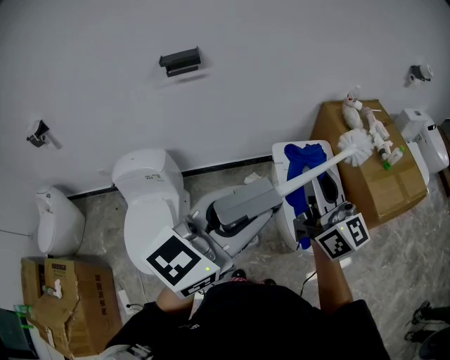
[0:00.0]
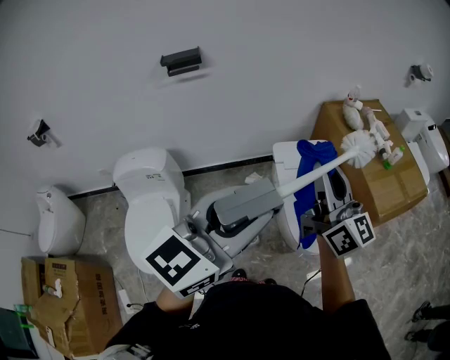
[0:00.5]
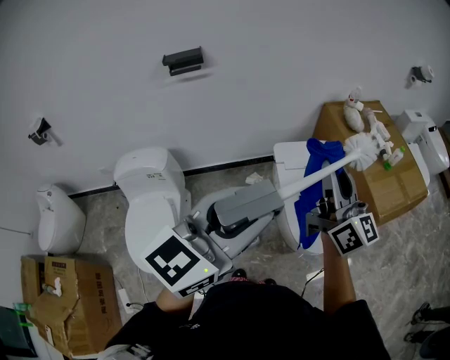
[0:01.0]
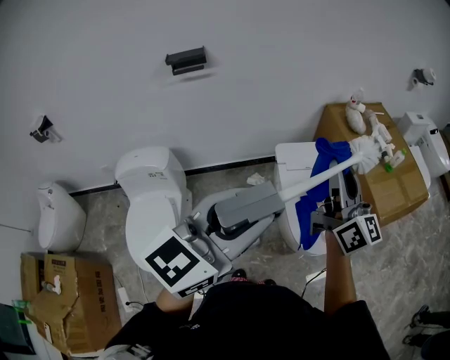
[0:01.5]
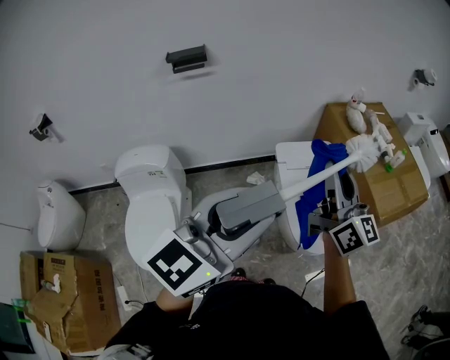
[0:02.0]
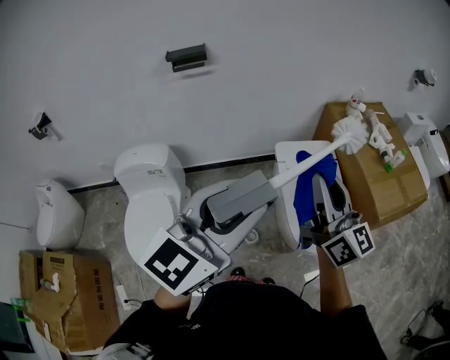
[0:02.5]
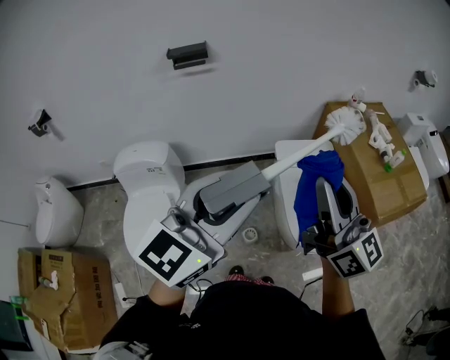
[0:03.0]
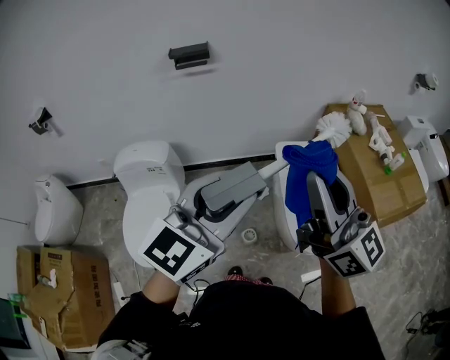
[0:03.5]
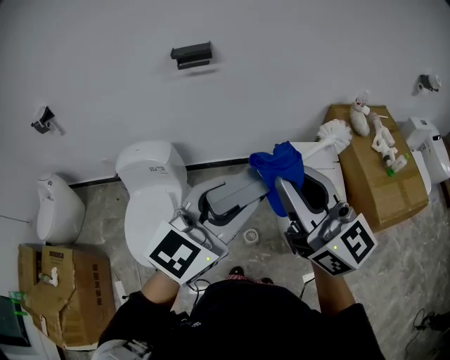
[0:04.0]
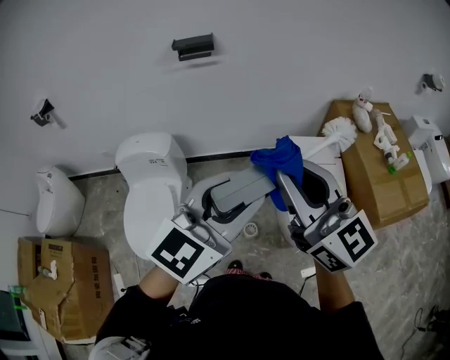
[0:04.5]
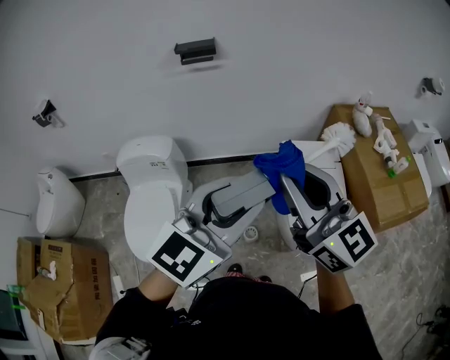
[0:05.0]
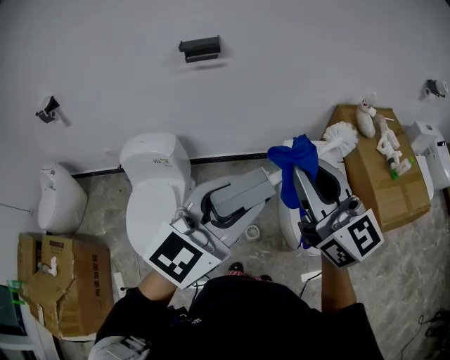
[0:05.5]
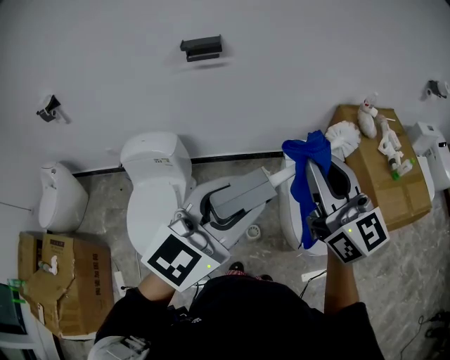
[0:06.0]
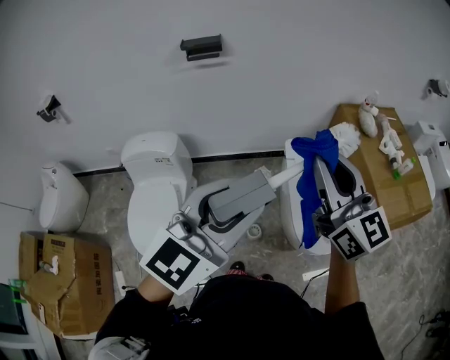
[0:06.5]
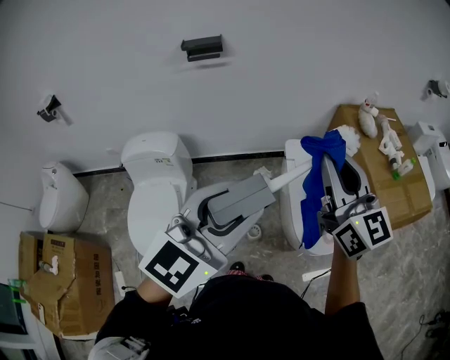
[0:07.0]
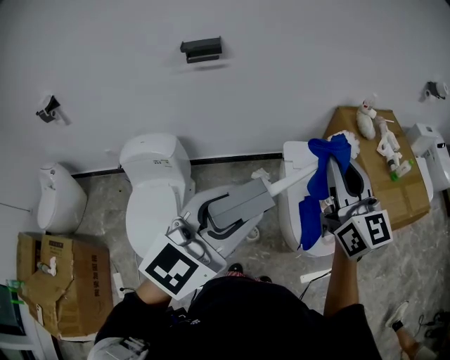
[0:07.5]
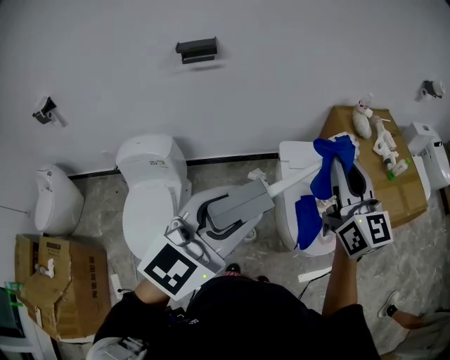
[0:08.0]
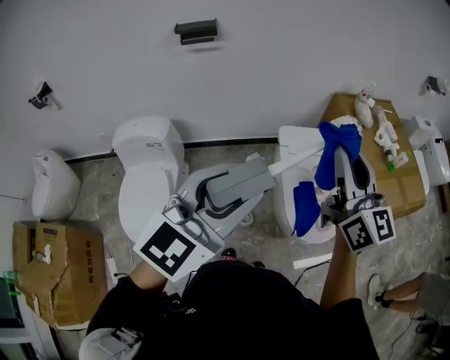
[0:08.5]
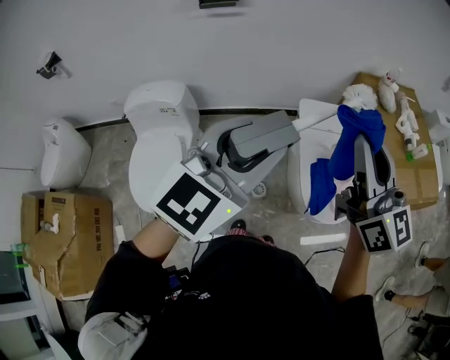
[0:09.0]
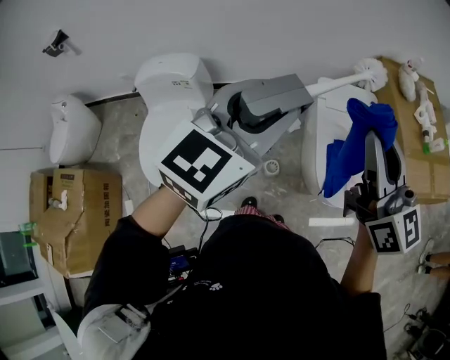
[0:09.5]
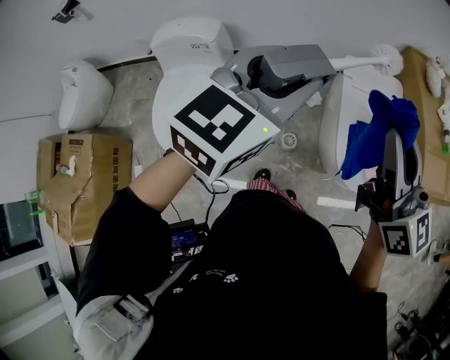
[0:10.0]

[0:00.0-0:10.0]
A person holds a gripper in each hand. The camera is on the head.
0:00.0 to 0:02.0: The grippers make only small movements.
0:02.0 to 0:04.0: The right gripper goes some 15 cm to the left, backward and upward, and swivels approximately 30 degrees.
0:04.0 to 0:06.0: The grippers stay close to where they were, moving slightly.
0:06.0 to 0:08.0: The right gripper moves to the right, roughly 10 cm.
0:08.0 to 0:10.0: The right gripper shifts roughly 5 cm to the left and backward, and turns by roughly 20 degrees; the left gripper travels forward and downward by roughly 10 cm.

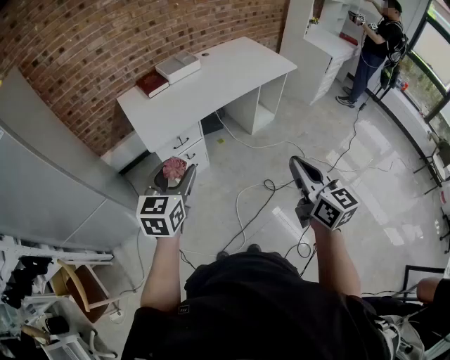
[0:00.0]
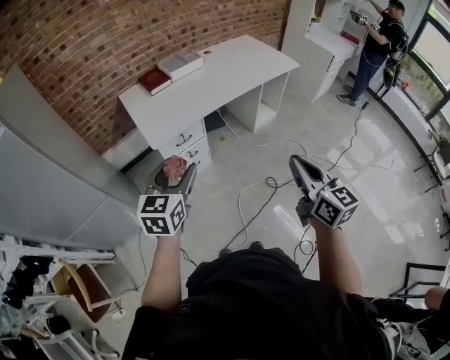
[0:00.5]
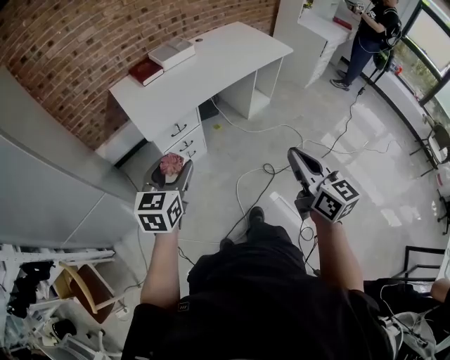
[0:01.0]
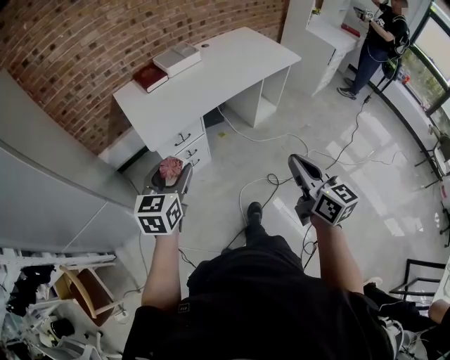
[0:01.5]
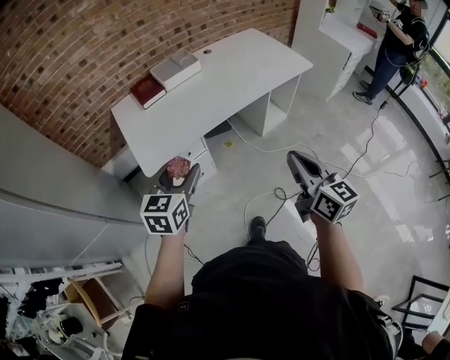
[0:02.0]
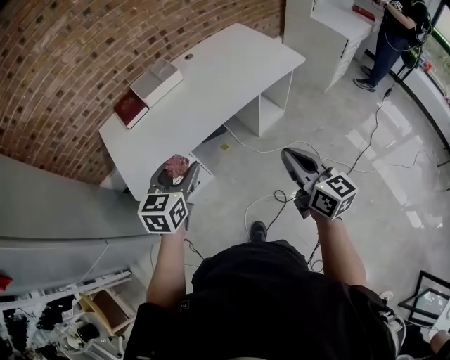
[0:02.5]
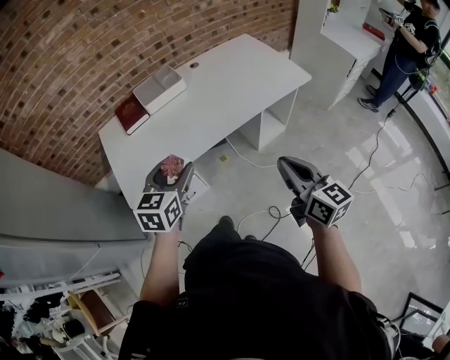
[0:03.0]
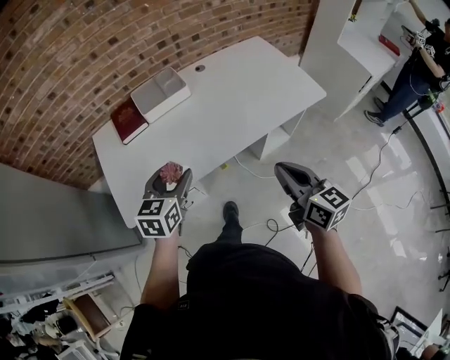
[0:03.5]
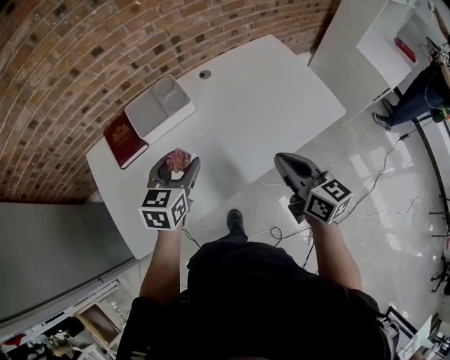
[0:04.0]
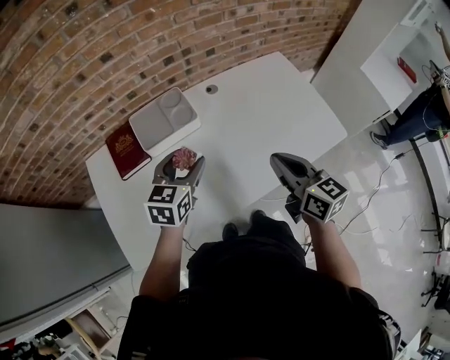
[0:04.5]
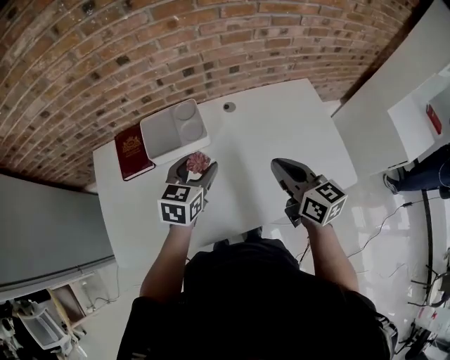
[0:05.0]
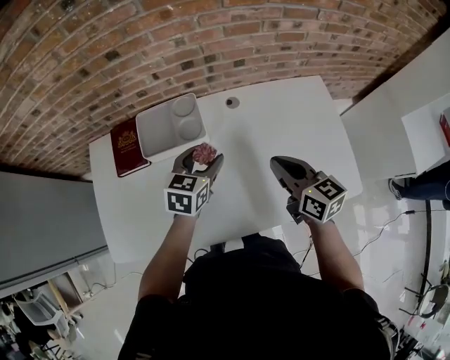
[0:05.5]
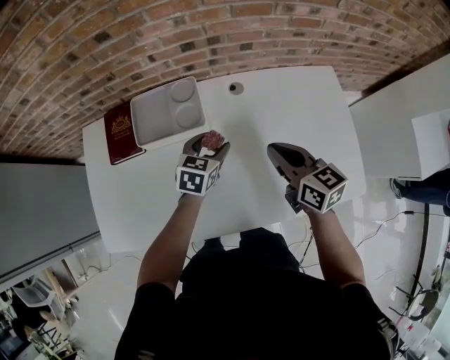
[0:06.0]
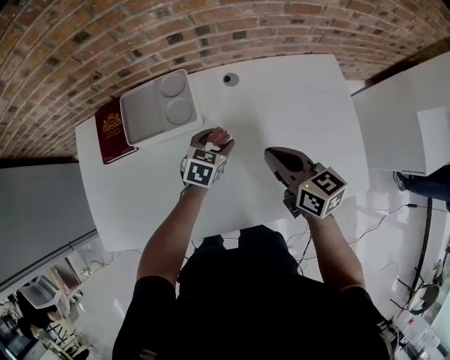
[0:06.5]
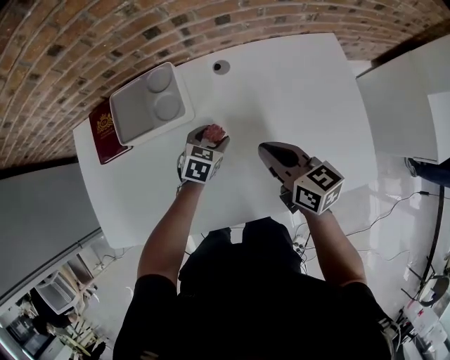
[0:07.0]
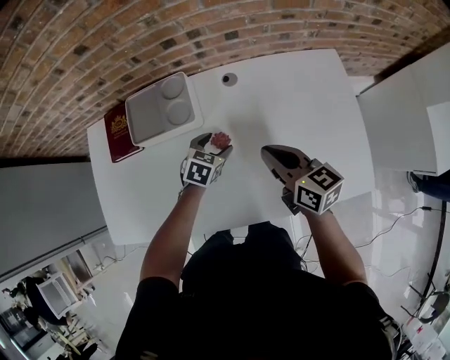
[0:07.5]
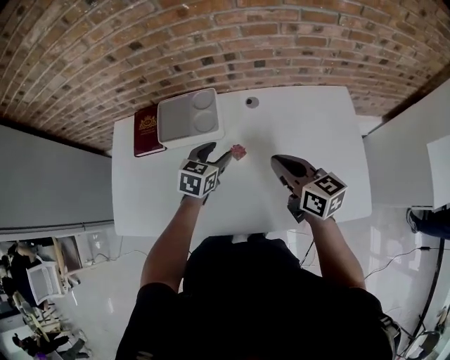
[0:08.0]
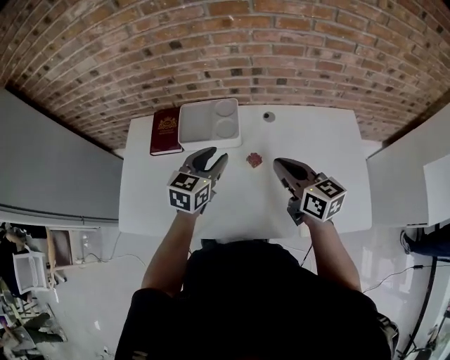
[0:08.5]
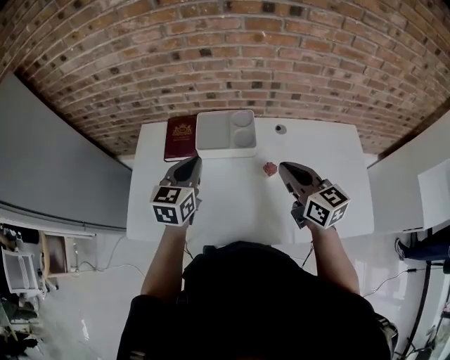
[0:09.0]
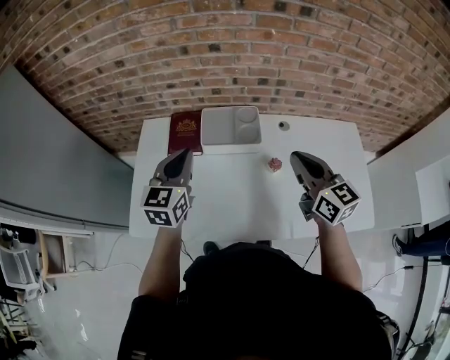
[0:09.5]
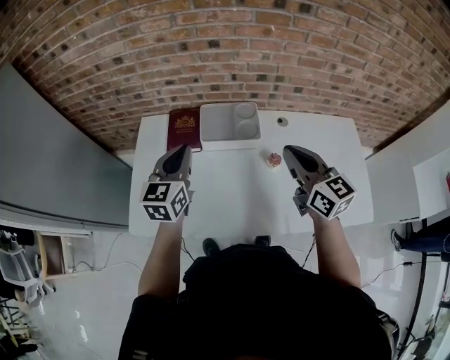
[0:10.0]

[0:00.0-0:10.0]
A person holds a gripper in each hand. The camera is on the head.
0:00.0 to 0:02.0: The grippers both shift forward by about 20 cm.
0:02.0 to 0:04.0: Both grippers are carried forward, about 50 cm.
0:04.0 to 0:06.0: The right gripper heads forward, covering roughly 25 cm, and turns by about 30 degrees. Meanwhile the left gripper is displaced forward, downward and to the right by some 25 cm.
0:06.0 to 0:08.0: The left gripper reaches some 10 cm downward, then returns, while the right gripper moves some 5 cm downward and comes back.
0:08.0 to 0:10.0: The right gripper travels to the left and upward by about 20 cm, and changes its angle by roughly 20 degrees, while the left gripper moves to the left and upward, roughly 35 cm, changes its angle by some 30 degrees, and closes up.

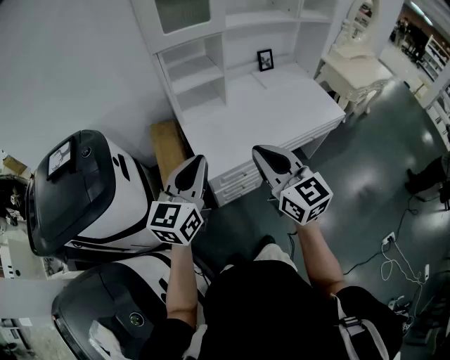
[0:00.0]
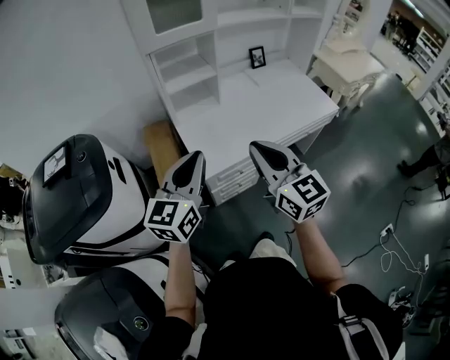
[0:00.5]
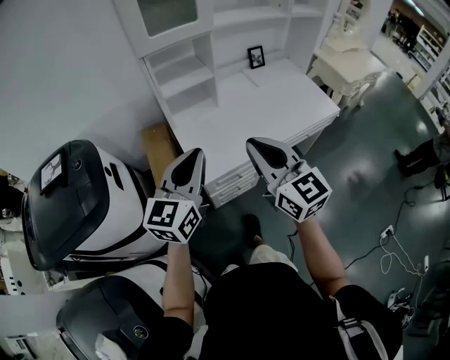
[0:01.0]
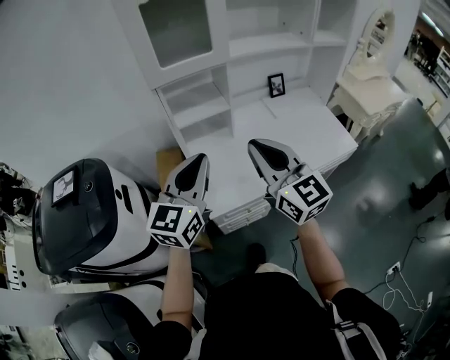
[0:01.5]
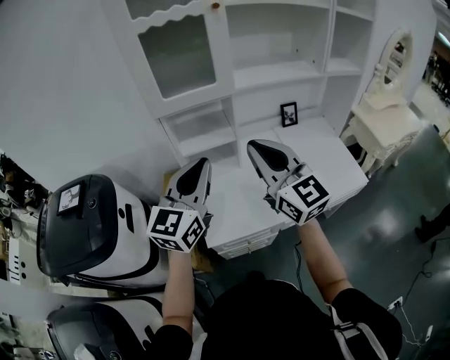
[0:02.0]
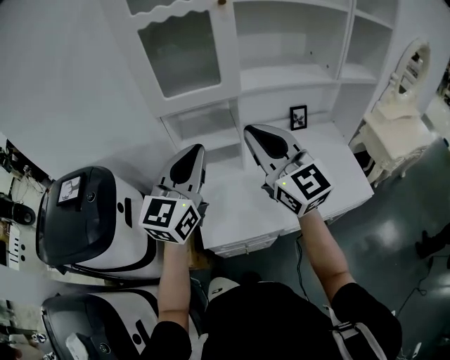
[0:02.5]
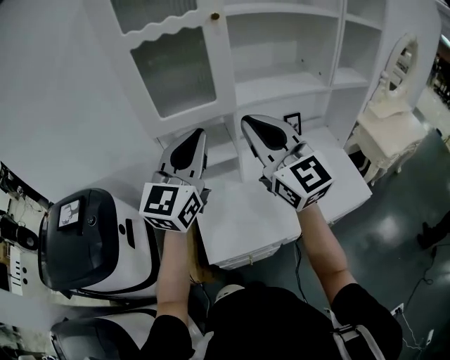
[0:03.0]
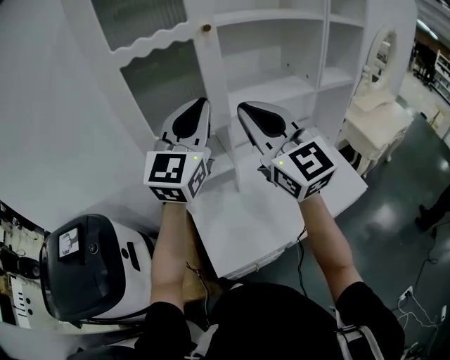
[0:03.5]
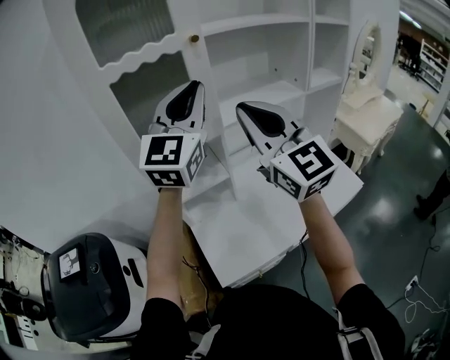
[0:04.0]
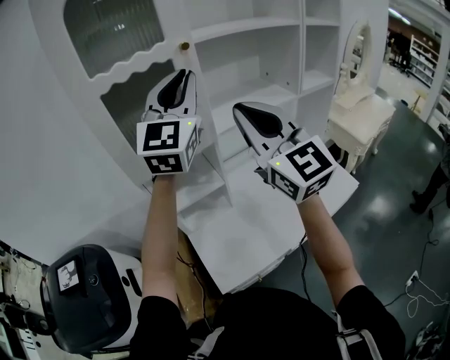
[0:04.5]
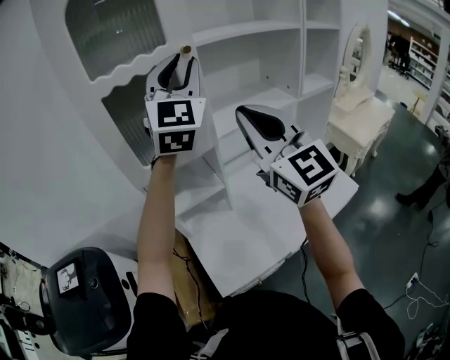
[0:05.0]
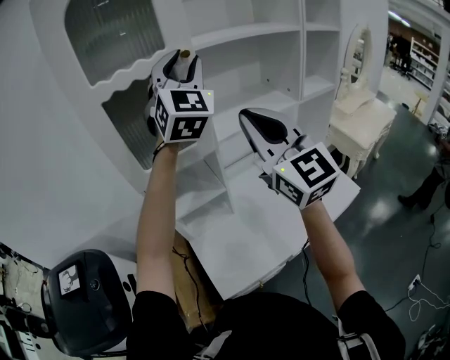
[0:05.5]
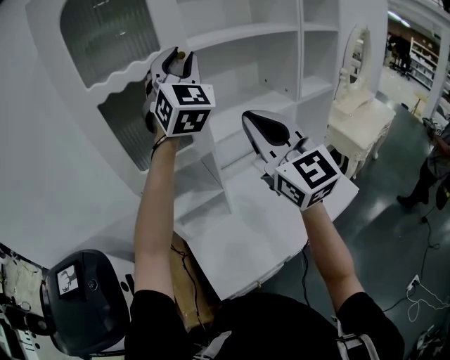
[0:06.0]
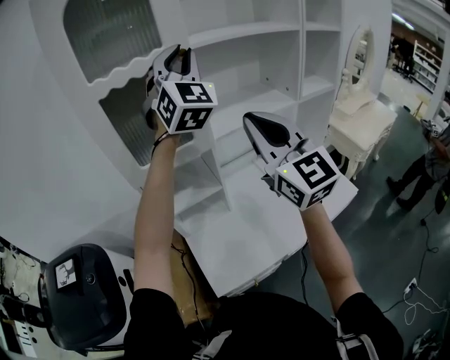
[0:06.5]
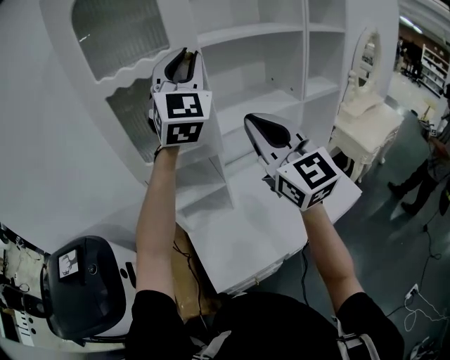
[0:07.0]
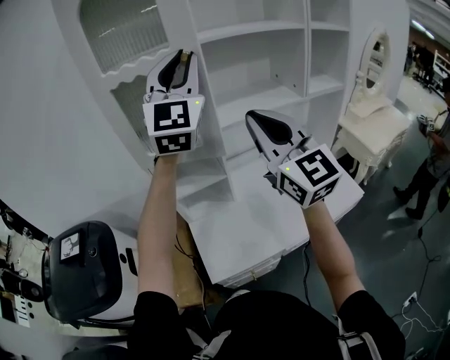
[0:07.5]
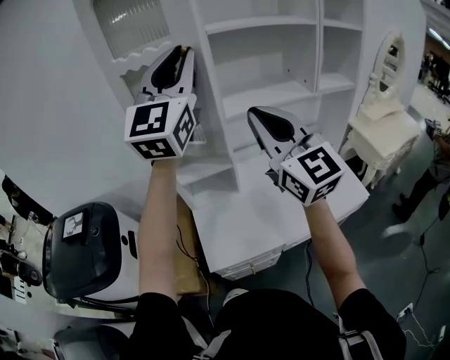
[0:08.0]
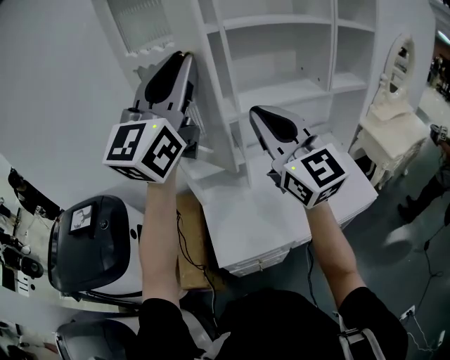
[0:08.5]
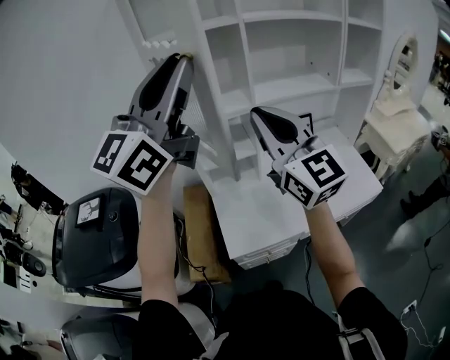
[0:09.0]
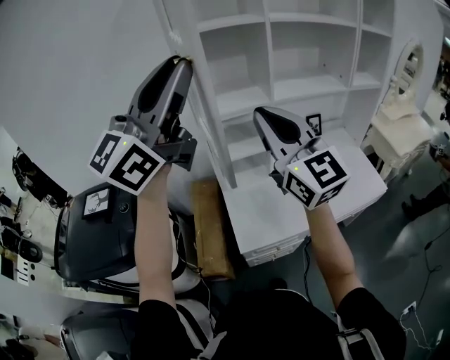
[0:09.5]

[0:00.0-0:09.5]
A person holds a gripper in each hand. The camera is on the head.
0:00.0 to 0:02.0: The left gripper is displaced forward, upward and to the right by roughly 25 cm. The right gripper heads forward and upward, covering roughly 25 cm.
0:02.0 to 0:04.0: The grippers both shift upward and forward by roughly 25 cm. The left gripper changes its angle by approximately 20 degrees.
0:04.0 to 0:05.5: The left gripper goes about 10 cm forward and upward, changes its angle by some 30 degrees, and opens its fingers.
0:05.5 to 0:07.5: The left gripper shifts about 10 cm backward, while the right gripper goes roughly 5 cm backward.
0:07.5 to 0:09.5: Both grippers travel together to the left and backward, about 25 cm. The left gripper swivels some 40 degrees.
